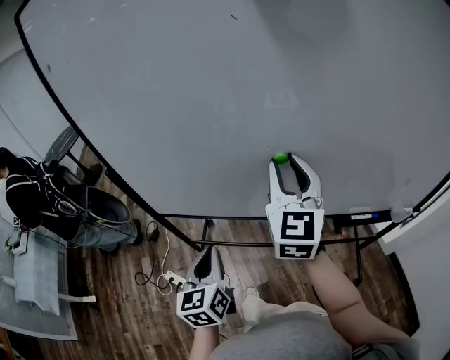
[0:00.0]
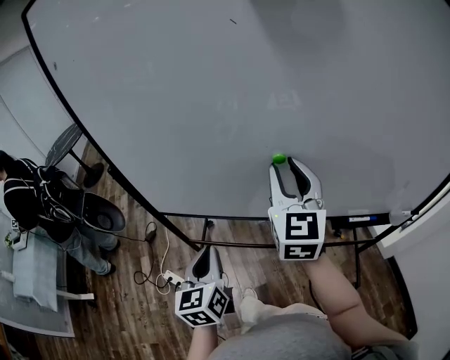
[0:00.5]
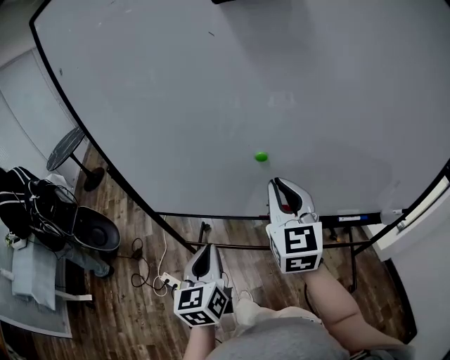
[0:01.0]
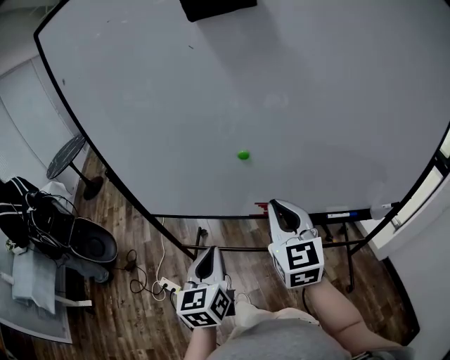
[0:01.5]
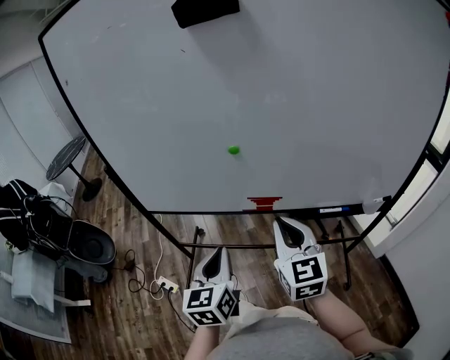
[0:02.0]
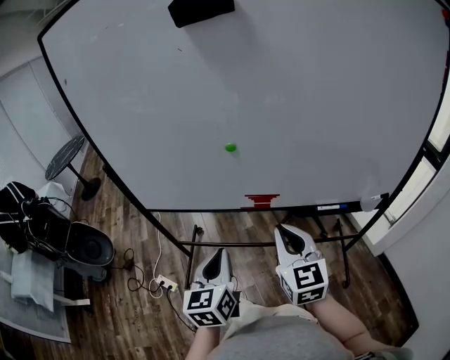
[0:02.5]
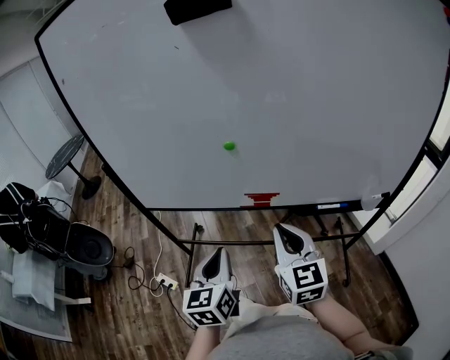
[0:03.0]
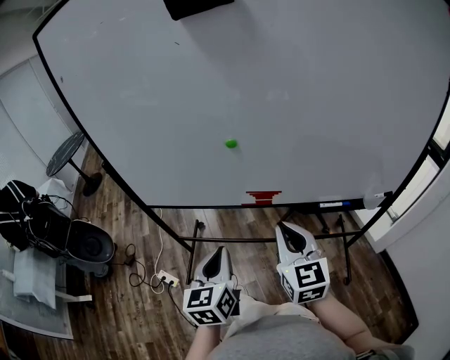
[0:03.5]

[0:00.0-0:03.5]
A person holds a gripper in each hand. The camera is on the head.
0:00.0 to 0:02.0: The left gripper shifts roughly 15 cm to the right and backward. The right gripper heads backward, to the right and downward, covering some 20 cm, and closes up.
0:02.0 to 0:03.5: The grippers move only a little.

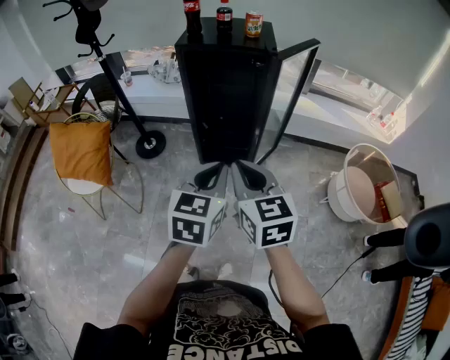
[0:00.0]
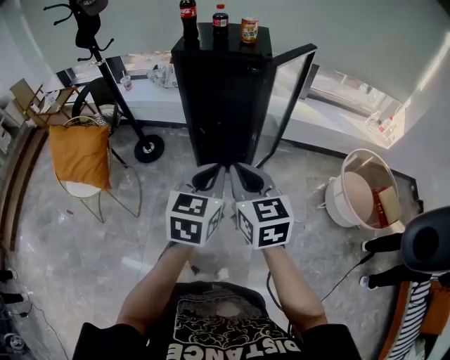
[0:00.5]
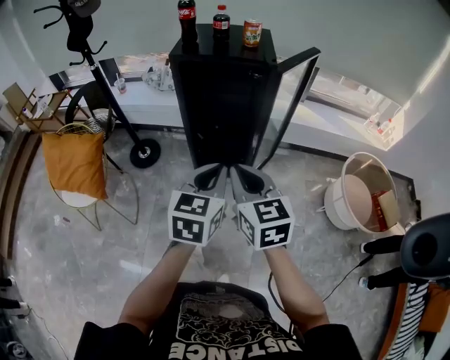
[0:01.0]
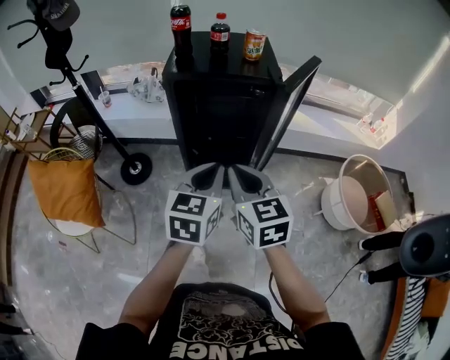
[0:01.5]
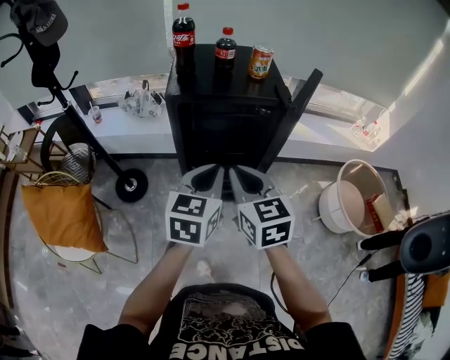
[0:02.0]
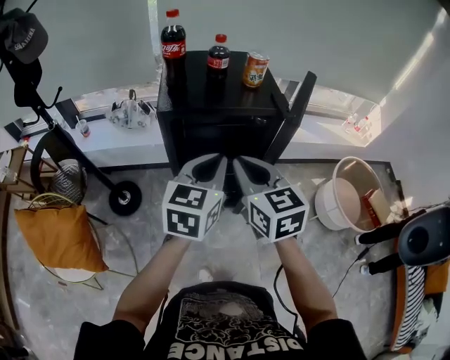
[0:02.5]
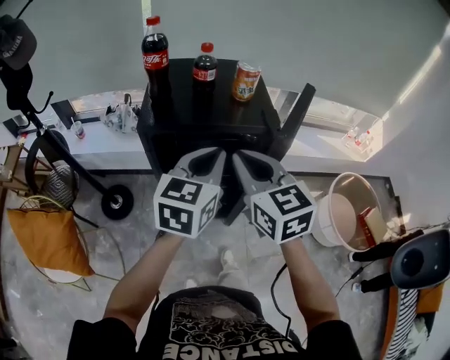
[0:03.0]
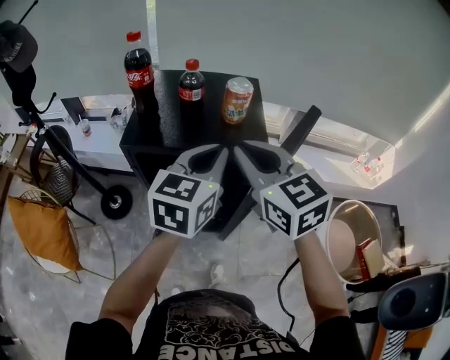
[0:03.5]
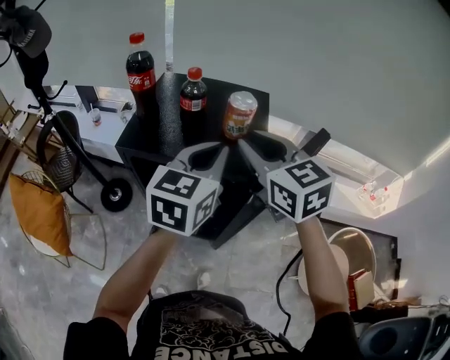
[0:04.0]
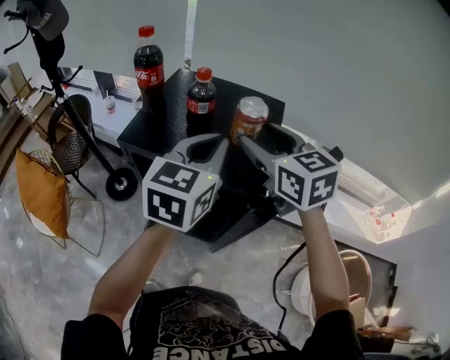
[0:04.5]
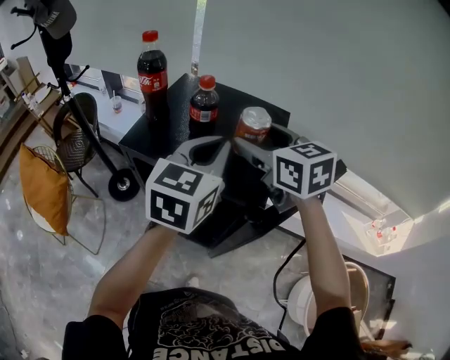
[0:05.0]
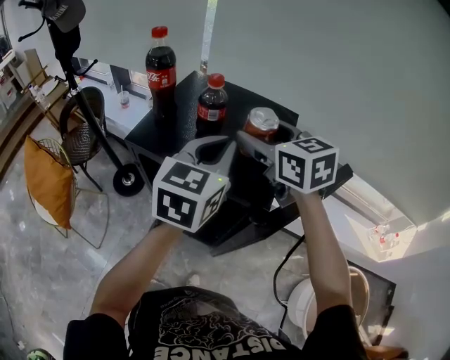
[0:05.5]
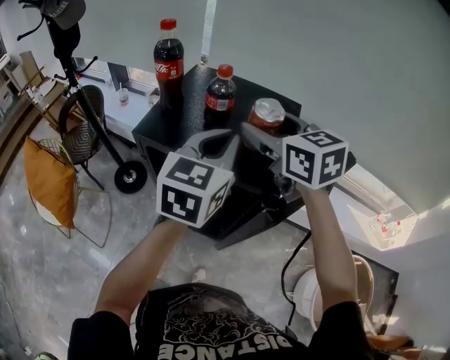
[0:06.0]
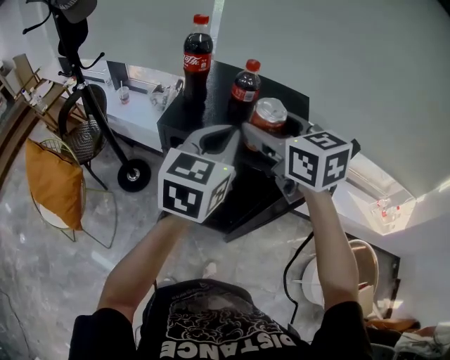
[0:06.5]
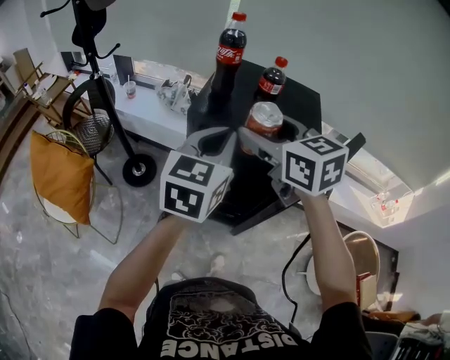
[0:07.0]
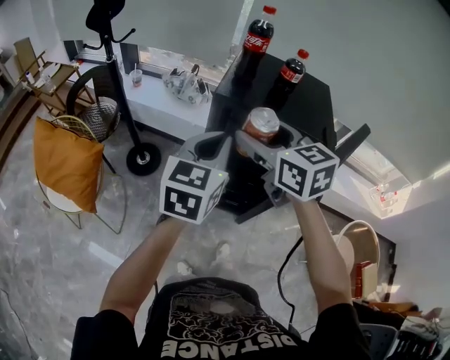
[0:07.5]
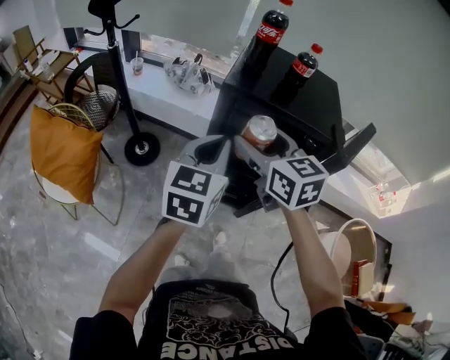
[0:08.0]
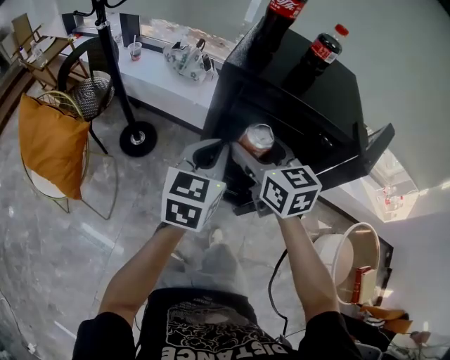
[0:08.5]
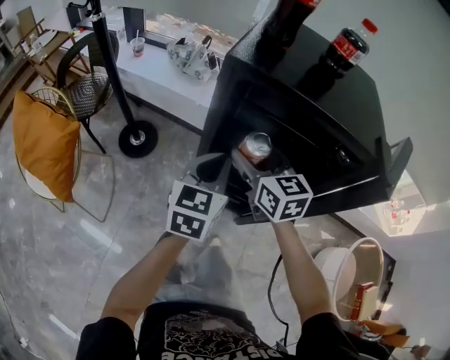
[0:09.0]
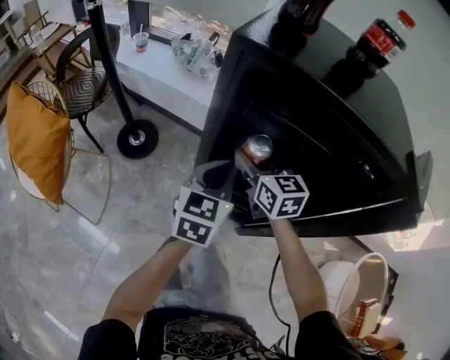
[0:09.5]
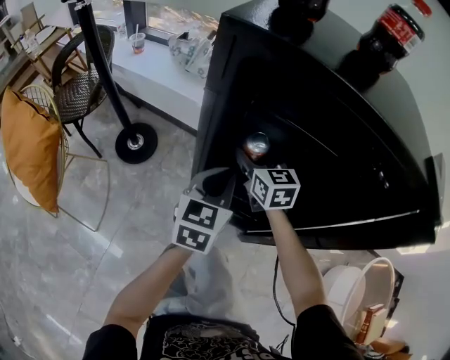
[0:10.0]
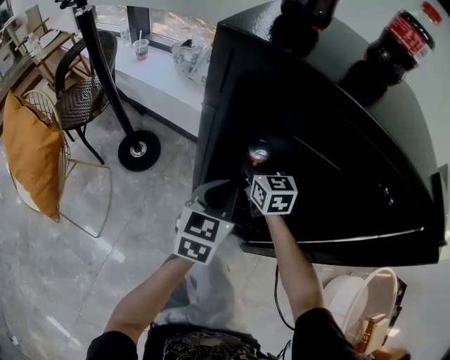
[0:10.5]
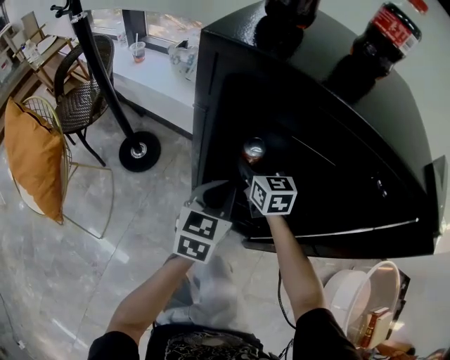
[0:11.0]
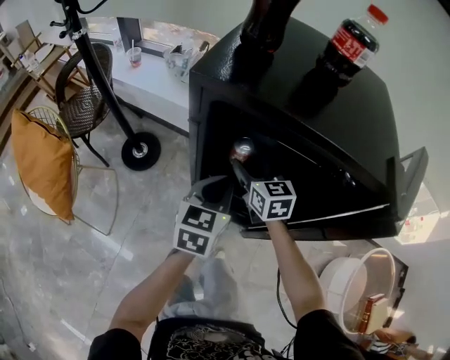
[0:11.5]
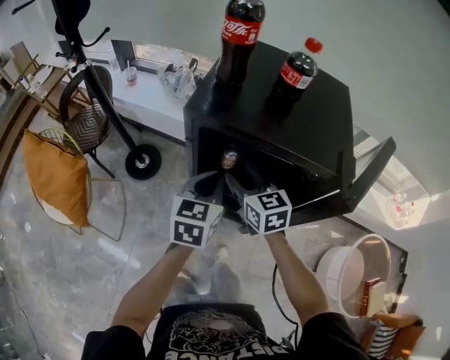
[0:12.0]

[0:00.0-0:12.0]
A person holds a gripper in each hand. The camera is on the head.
0:00.0 to 0:02.0: The grippers both shift forward by some 25 cm.
0:02.0 to 0:04.0: The right gripper is displaced forward, to the right and upward by some 30 cm, and turns by approximately 20 degrees. Meanwhile the left gripper is displaced forward and to the right by approximately 25 cm.
0:04.0 to 0:06.0: The right gripper is displaced forward by about 10 cm, and opens its fingers.
0:06.0 to 0:08.0: The right gripper travels to the left, backward and downward by about 30 cm, while the left gripper is displaced to the left and backward by some 25 cm.
0:08.0 to 0:10.0: Both grippers move downward and forward, some 40 cm.
0:10.0 to 0:12.0: The right gripper is displaced upward and backward by approximately 20 cm; the left gripper moves upward, about 20 cm.

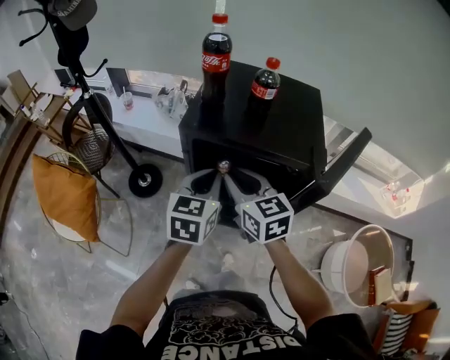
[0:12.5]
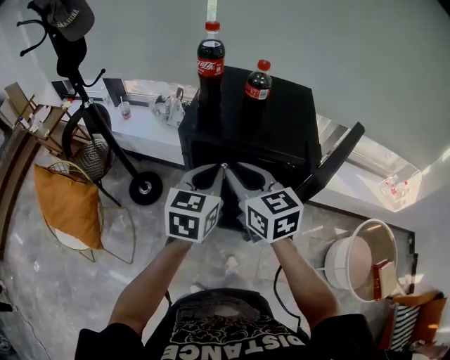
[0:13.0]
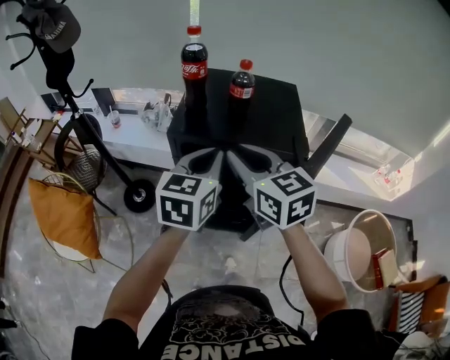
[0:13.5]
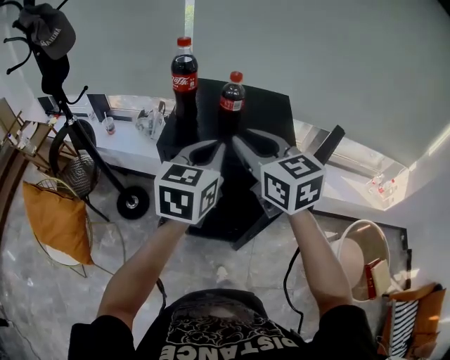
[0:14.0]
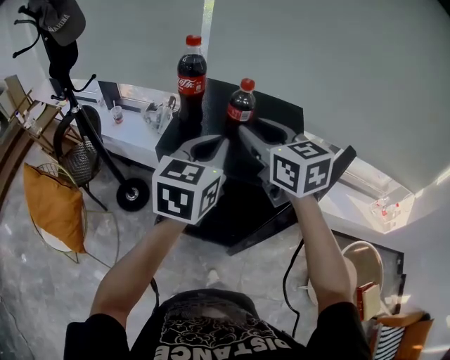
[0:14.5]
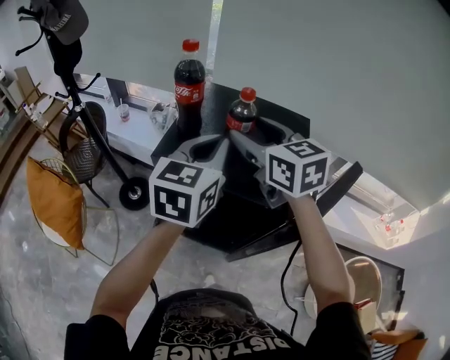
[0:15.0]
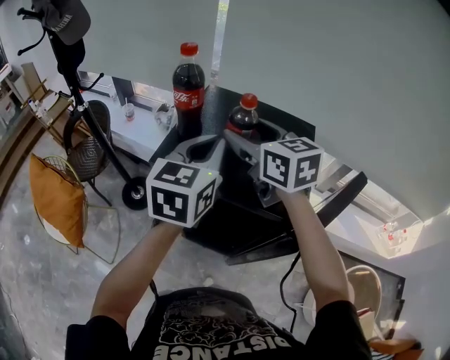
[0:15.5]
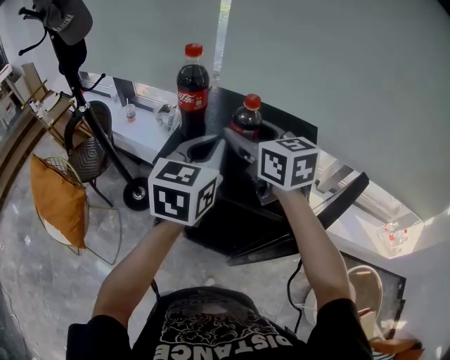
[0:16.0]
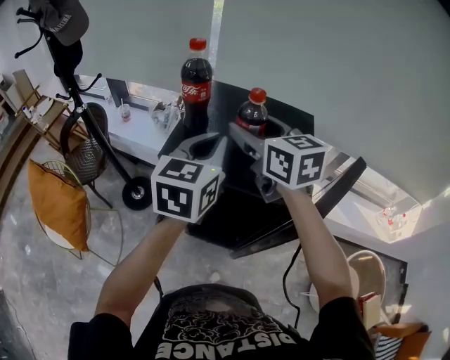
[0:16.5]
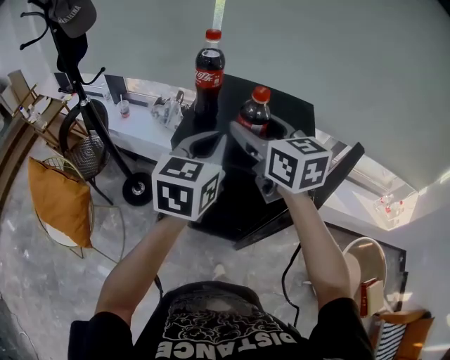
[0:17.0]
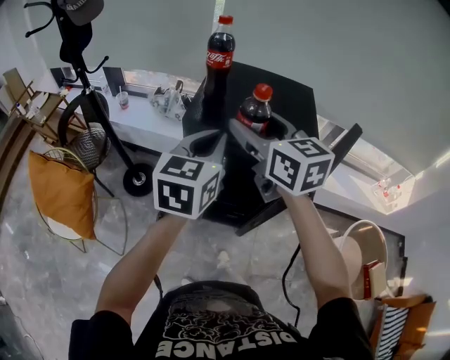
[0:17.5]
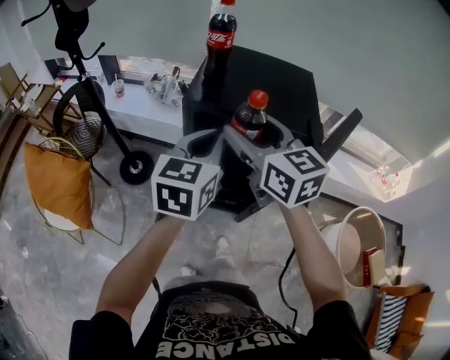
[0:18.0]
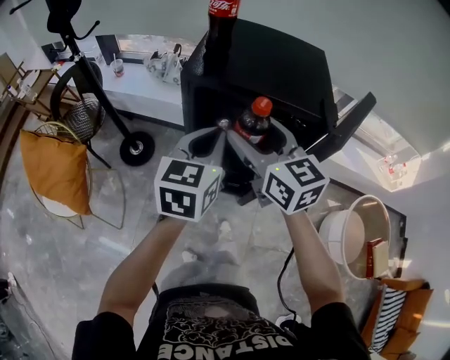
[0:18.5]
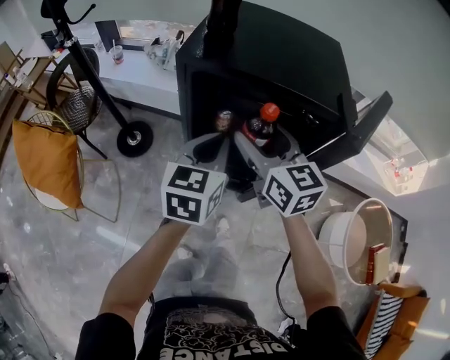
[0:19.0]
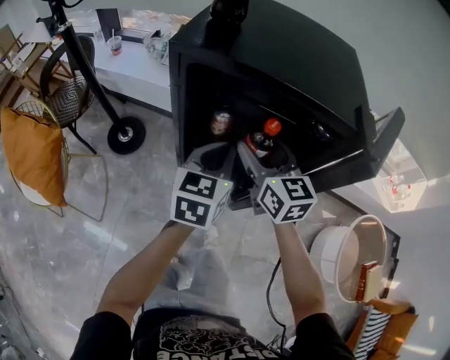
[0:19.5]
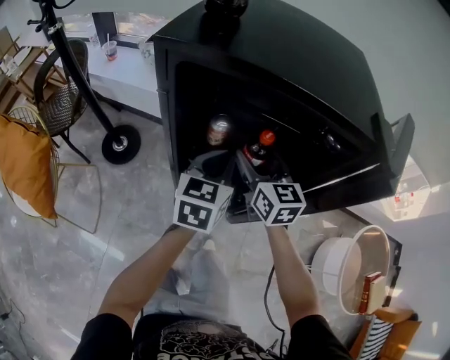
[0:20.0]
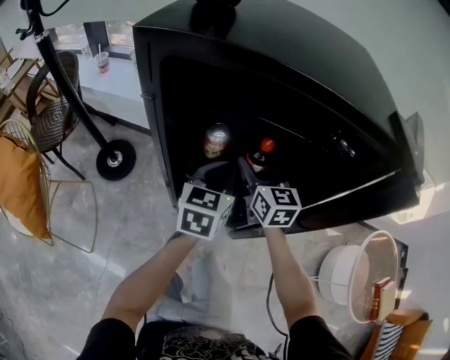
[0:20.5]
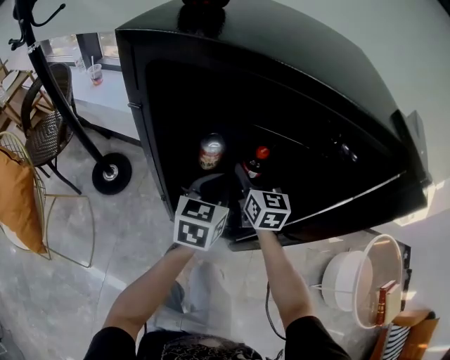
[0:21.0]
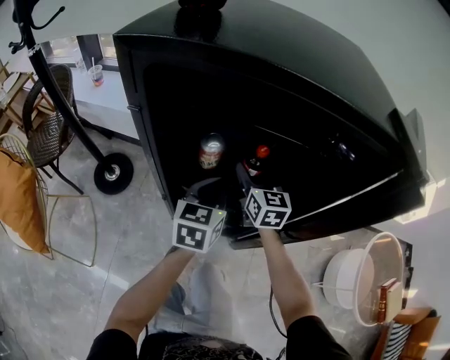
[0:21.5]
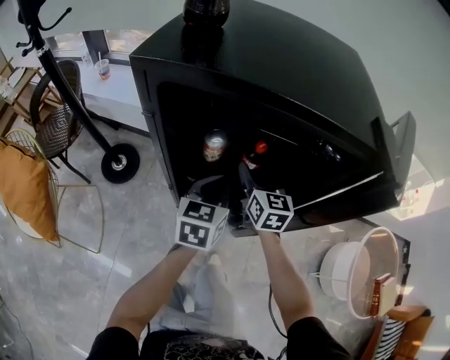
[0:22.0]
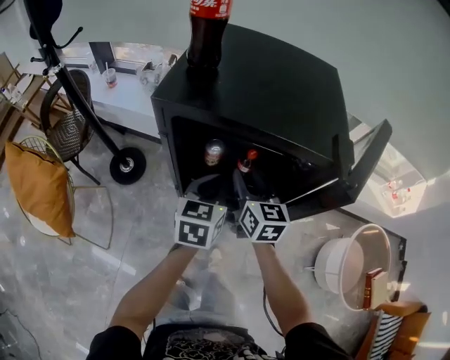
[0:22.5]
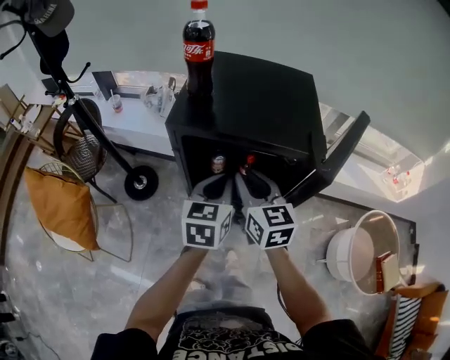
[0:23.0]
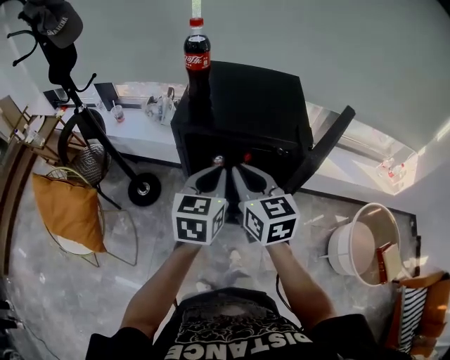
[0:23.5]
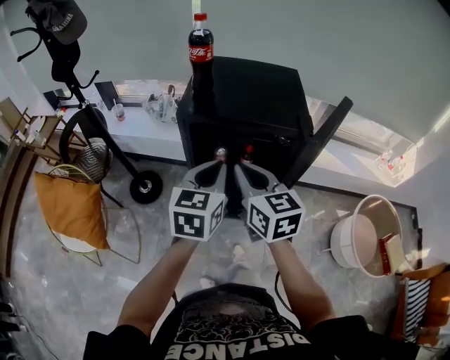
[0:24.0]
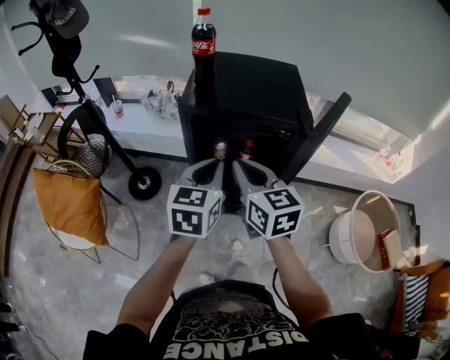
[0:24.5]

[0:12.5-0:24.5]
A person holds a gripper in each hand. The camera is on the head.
0:12.5 to 0:14.5: The grippers both shift upward, forward and to the right by about 20 cm.
0:14.5 to 0:16.5: The right gripper is displaced forward by some 5 cm, and opens.
0:16.5 to 0:18.5: The left gripper is displaced backward, downward and to the left by approximately 20 cm. The right gripper goes about 20 cm backward and downward.
0:18.5 to 0:20.5: The grippers both shift downward and forward by some 35 cm.
0:20.5 to 0:22.5: The grippers both shift upward and backward by about 15 cm. The right gripper closes up.
0:22.5 to 0:24.5: Both grippers travel together upward and backward, some 25 cm. The right gripper closes its fingers.
